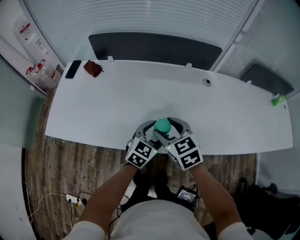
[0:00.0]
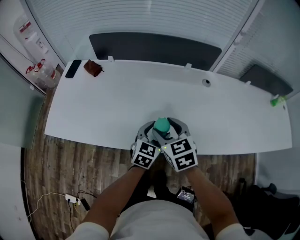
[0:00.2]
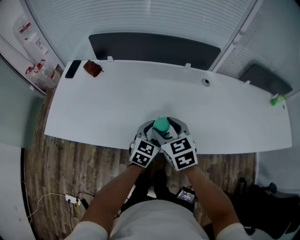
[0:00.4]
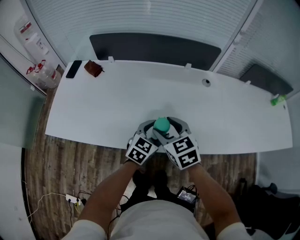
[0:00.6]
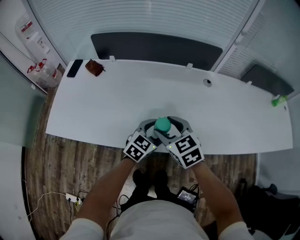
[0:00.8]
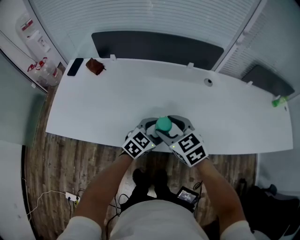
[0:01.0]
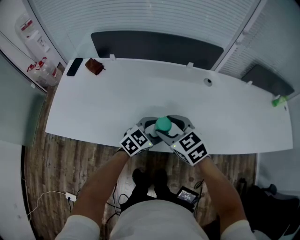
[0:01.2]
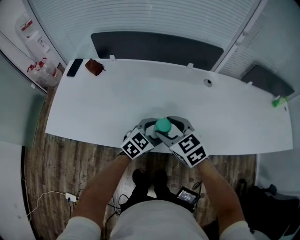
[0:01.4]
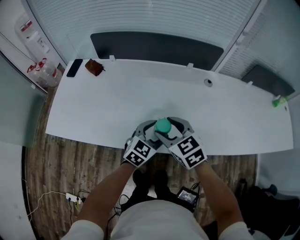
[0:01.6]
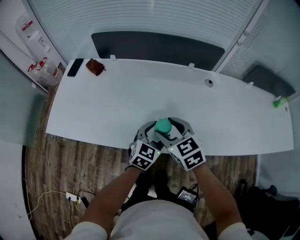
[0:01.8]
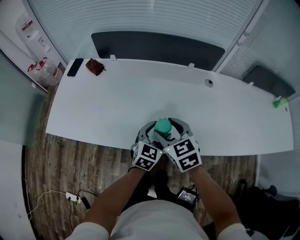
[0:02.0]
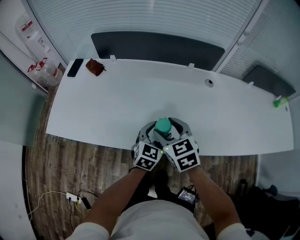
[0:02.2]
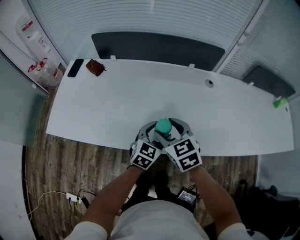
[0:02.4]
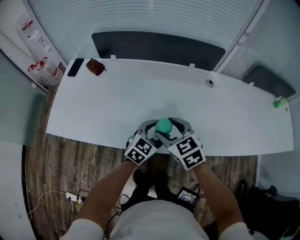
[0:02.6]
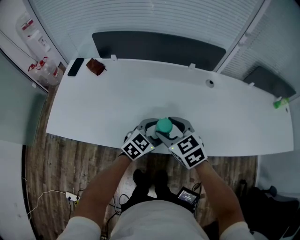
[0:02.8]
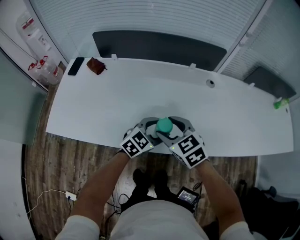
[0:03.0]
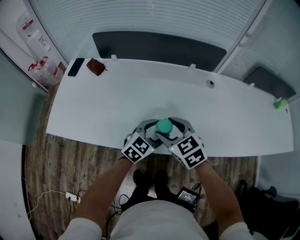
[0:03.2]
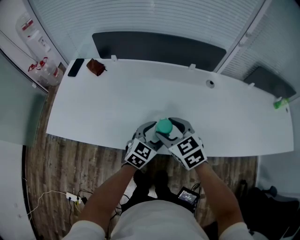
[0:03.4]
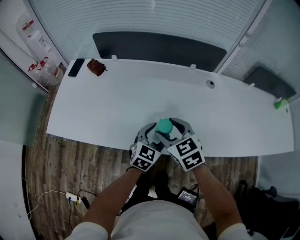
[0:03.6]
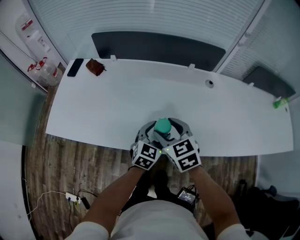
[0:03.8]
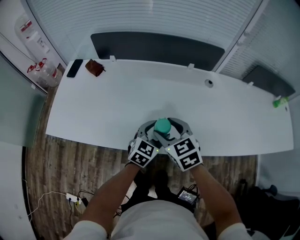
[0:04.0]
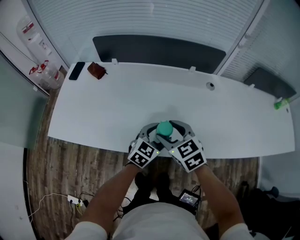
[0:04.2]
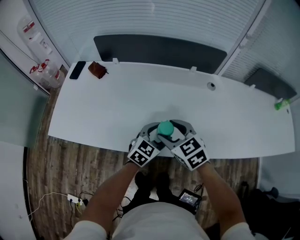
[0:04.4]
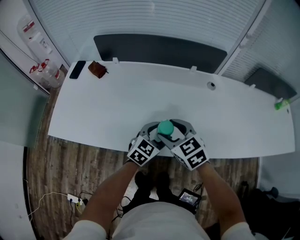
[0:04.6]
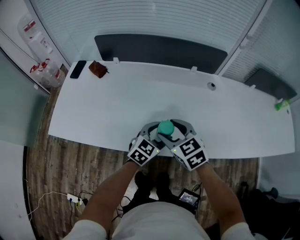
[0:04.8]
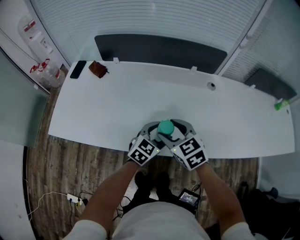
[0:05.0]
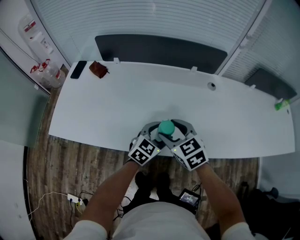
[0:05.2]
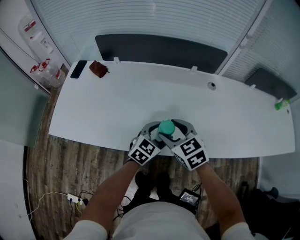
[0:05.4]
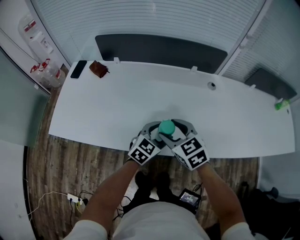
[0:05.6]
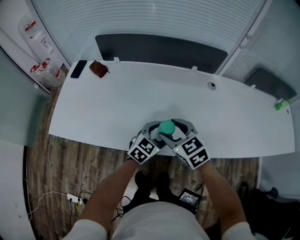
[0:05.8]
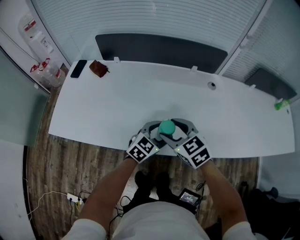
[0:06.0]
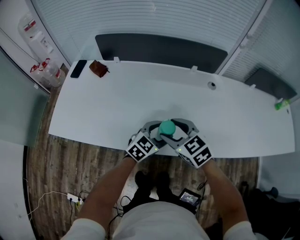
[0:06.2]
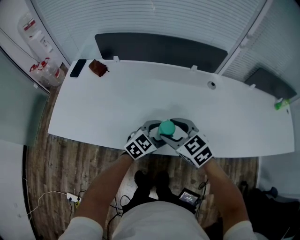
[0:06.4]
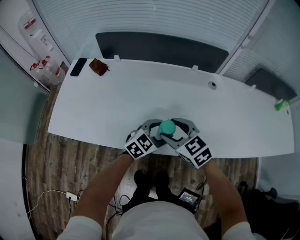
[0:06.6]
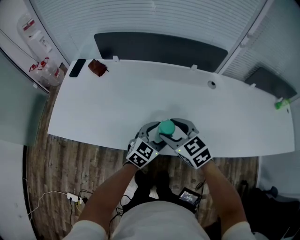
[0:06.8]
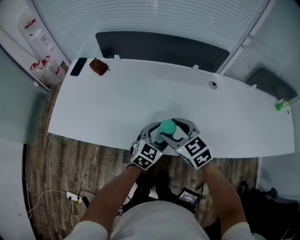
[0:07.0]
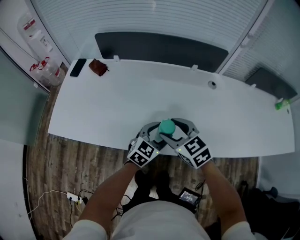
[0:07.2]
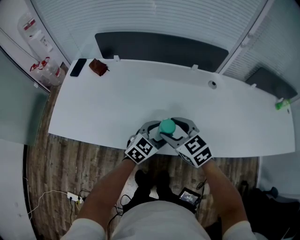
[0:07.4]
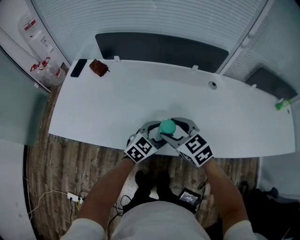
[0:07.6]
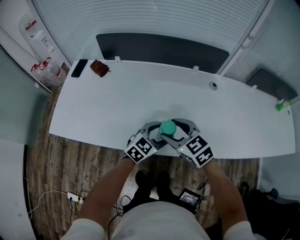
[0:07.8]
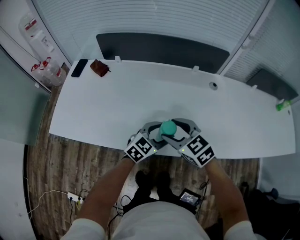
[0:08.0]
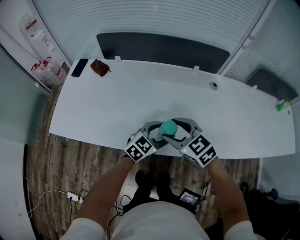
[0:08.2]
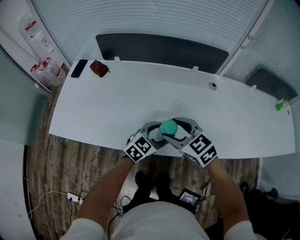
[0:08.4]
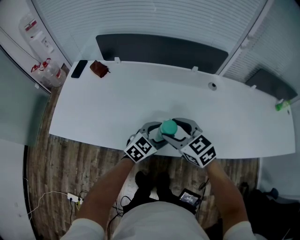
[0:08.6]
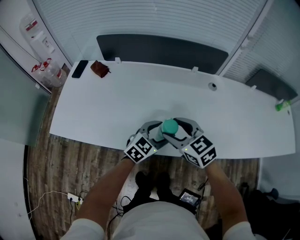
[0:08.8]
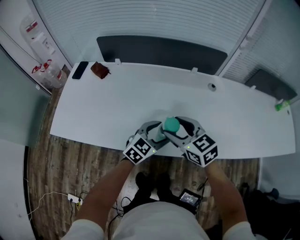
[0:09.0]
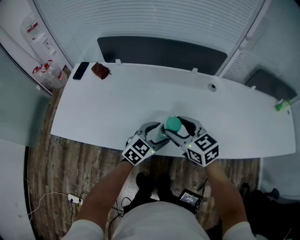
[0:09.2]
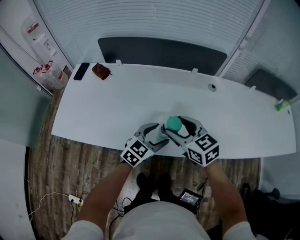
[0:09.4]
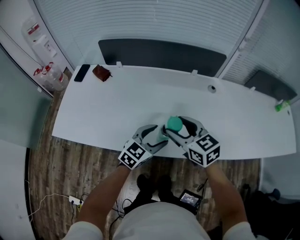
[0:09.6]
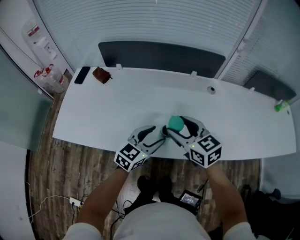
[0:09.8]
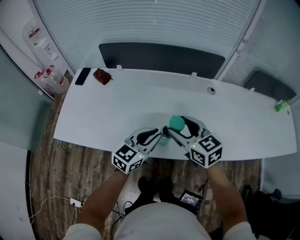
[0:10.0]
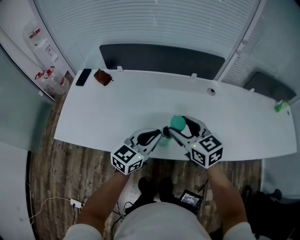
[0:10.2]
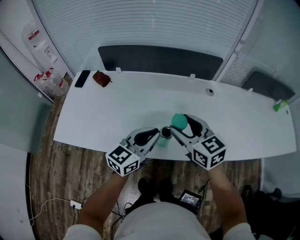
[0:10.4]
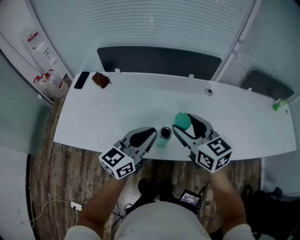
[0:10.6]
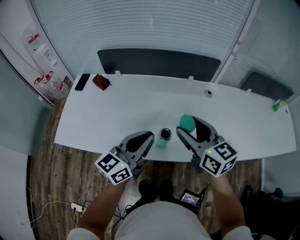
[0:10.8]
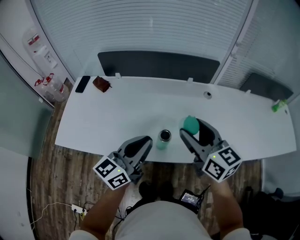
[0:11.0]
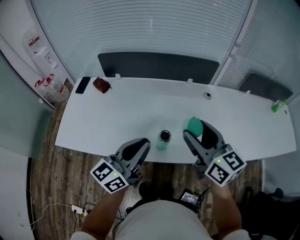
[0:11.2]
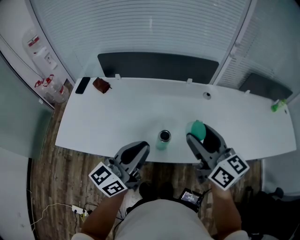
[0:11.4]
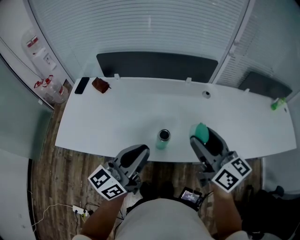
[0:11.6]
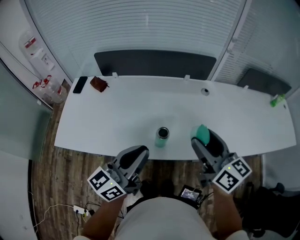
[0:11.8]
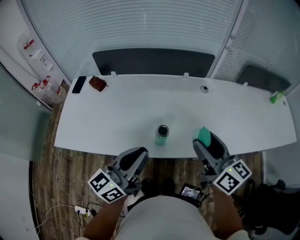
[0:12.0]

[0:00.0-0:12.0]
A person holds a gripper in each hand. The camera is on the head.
0:00.0 to 0:03.0: The grippers move only a little.
0:04.4 to 0:09.0: The grippers make only small movements.
0:09.0 to 0:10.4: The left gripper goes roughly 10 cm upward, rotates approximately 30 degrees, and closes. The right gripper travels upward by roughly 5 cm.
0:10.4 to 0:12.0: The left gripper travels backward and upward by about 10 cm, and turns by roughly 20 degrees. Meanwhile the right gripper moves to the right, backward and upward, roughly 15 cm, and turns by roughly 30 degrees.

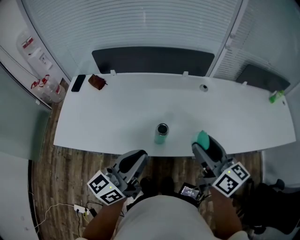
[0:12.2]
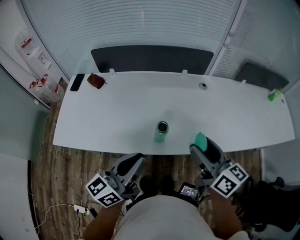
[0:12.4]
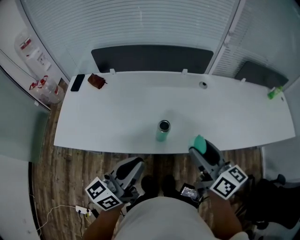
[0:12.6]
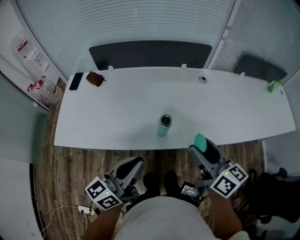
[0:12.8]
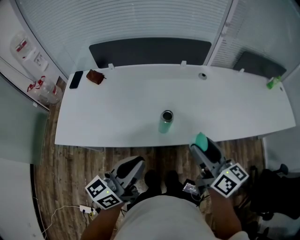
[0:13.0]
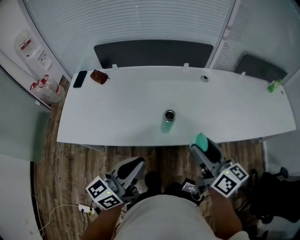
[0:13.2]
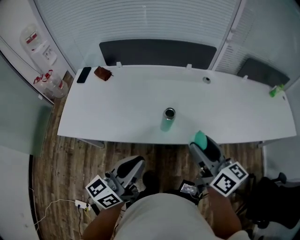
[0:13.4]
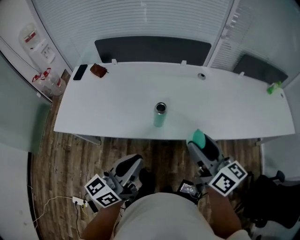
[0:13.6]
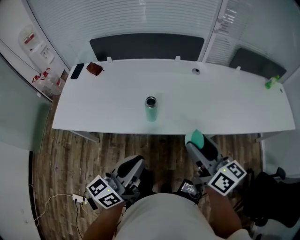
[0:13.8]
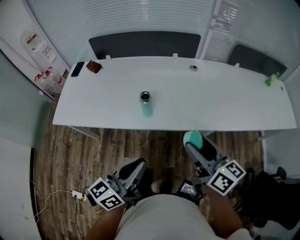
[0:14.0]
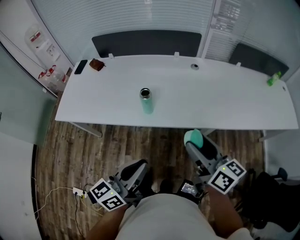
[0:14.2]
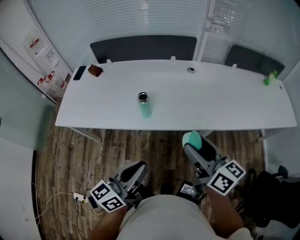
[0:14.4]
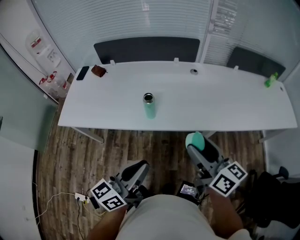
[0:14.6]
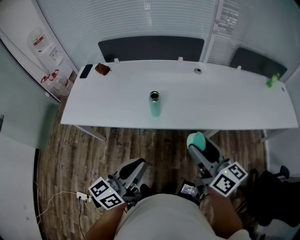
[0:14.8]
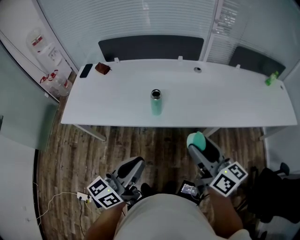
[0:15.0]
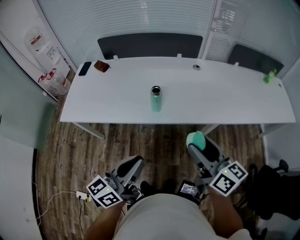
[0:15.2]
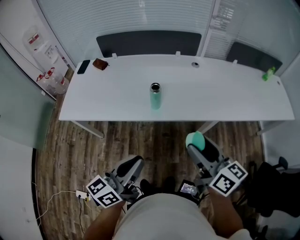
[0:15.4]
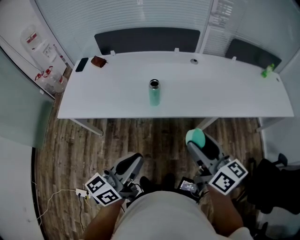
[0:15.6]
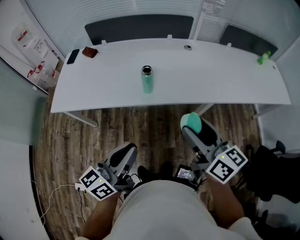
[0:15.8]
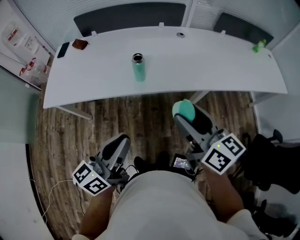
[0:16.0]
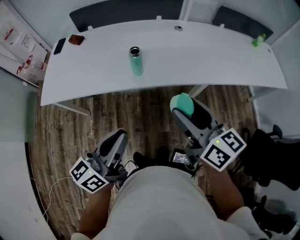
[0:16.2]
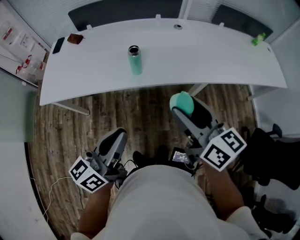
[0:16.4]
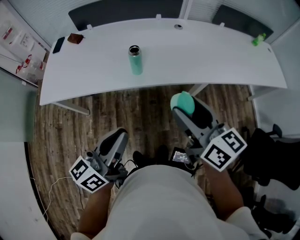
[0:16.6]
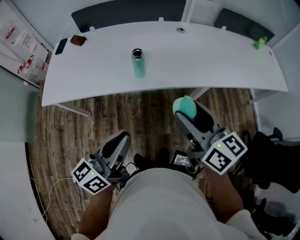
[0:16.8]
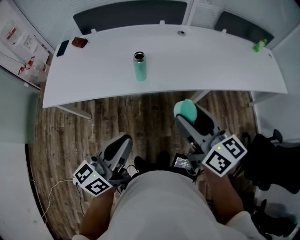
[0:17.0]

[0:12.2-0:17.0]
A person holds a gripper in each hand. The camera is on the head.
0:12.2 to 0:13.8: The left gripper is displaced backward and to the right by some 15 cm, while the right gripper heads backward, covering roughly 10 cm.
0:13.8 to 0:15.4: The grippers both shift backward by about 10 cm.
0:15.4 to 0:17.0: There are only small adjustments of the grippers.

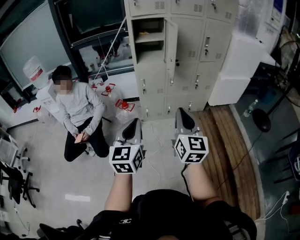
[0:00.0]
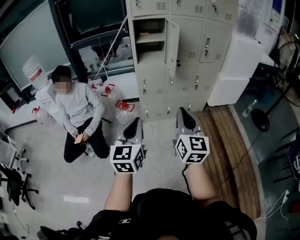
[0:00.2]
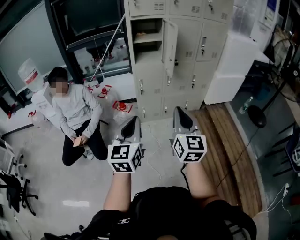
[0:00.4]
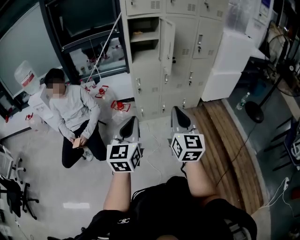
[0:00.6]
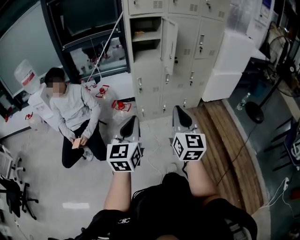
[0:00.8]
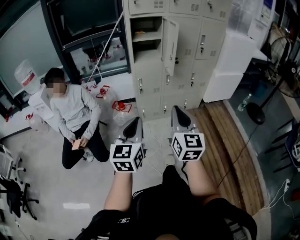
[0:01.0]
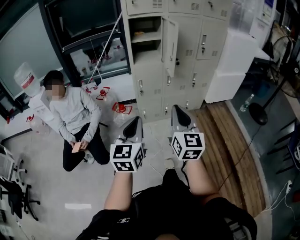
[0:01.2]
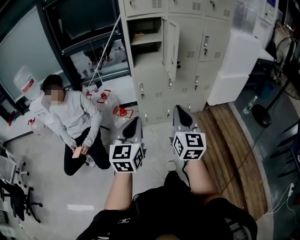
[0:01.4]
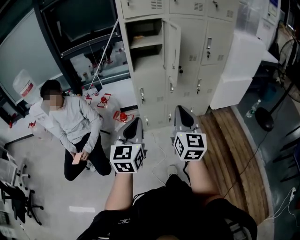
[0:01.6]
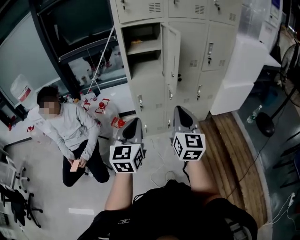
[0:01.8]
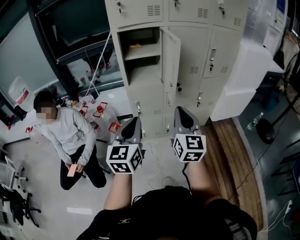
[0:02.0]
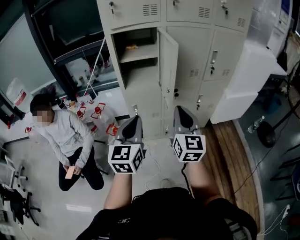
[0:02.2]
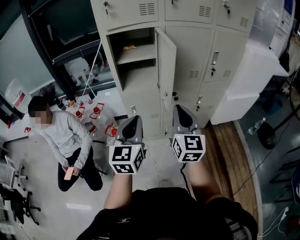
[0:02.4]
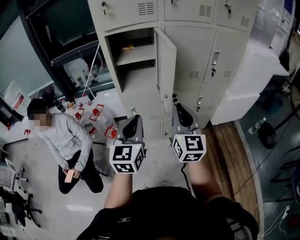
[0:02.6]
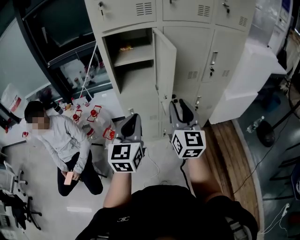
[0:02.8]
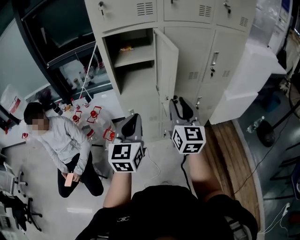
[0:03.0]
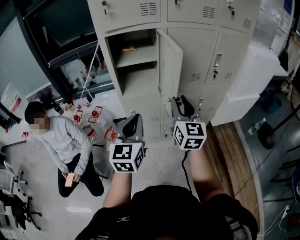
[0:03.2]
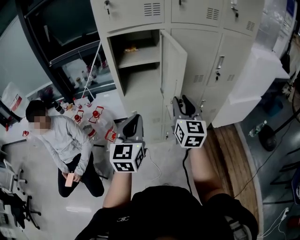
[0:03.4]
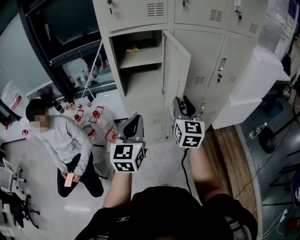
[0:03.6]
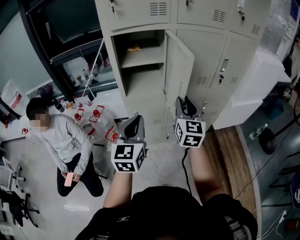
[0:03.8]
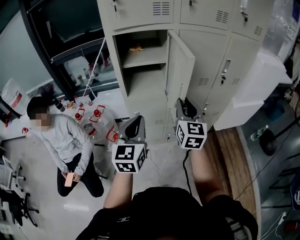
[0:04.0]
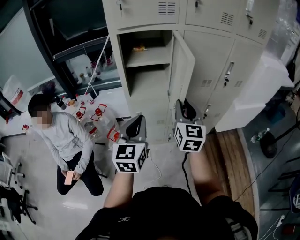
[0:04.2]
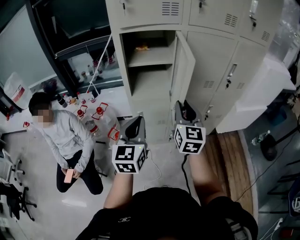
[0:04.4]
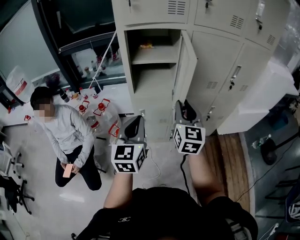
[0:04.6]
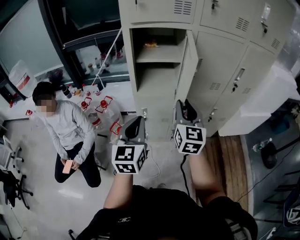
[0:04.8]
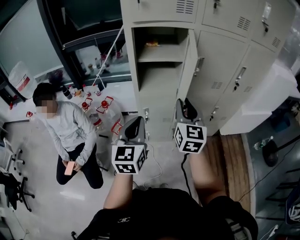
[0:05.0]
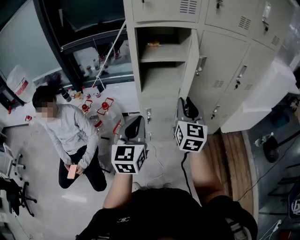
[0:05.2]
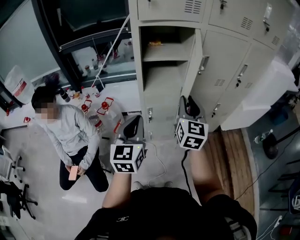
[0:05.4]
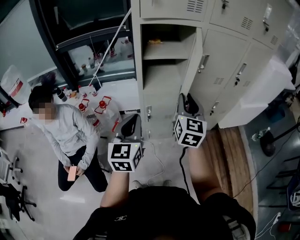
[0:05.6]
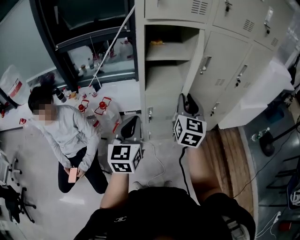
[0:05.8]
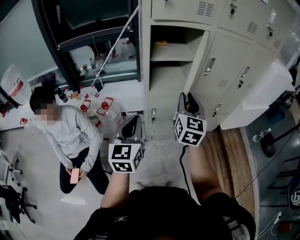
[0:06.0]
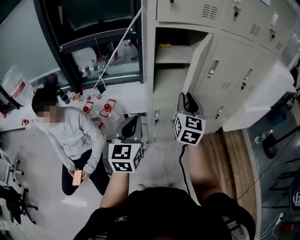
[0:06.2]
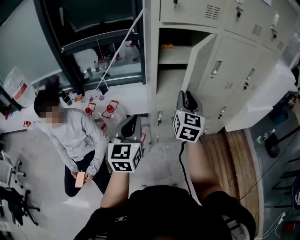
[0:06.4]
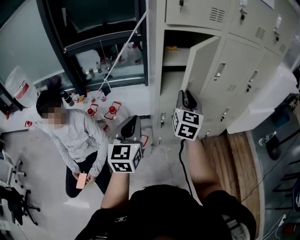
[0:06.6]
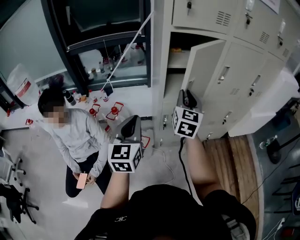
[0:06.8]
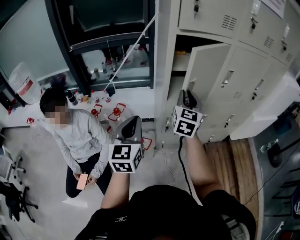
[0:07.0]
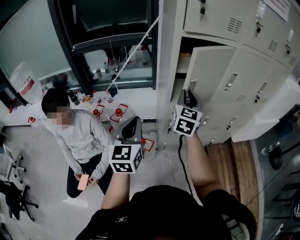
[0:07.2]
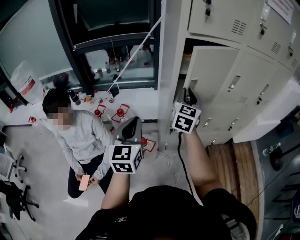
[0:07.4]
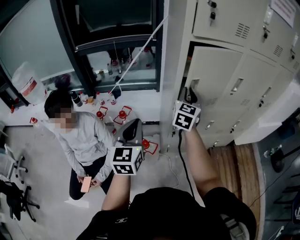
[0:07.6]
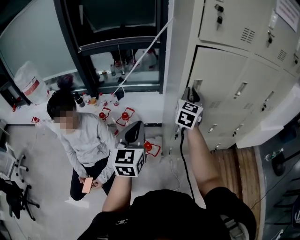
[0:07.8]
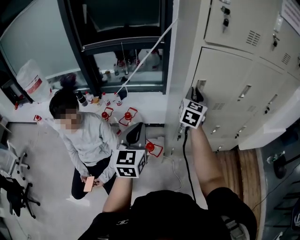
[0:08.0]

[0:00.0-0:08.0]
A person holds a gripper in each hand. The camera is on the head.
0:00.0 to 0:01.6: The grippers both shift forward by roughly 15 cm.
0:01.6 to 0:03.2: Both grippers travel together forward, about 30 cm. The right gripper opens.
0:03.2 to 0:04.8: Both grippers move to the left, about 5 cm.
0:04.8 to 0:06.4: Both grippers travel together to the left, approximately 15 cm.
0:06.4 to 0:08.0: The right gripper heads forward and to the left, covering approximately 15 cm. Meanwhile the left gripper travels to the left by about 10 cm.
